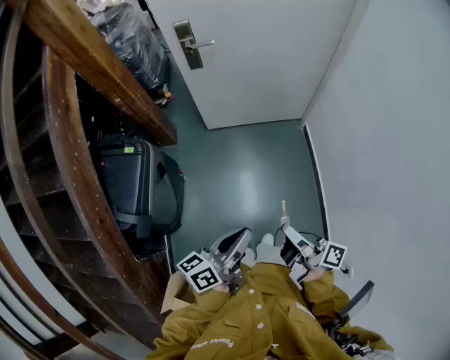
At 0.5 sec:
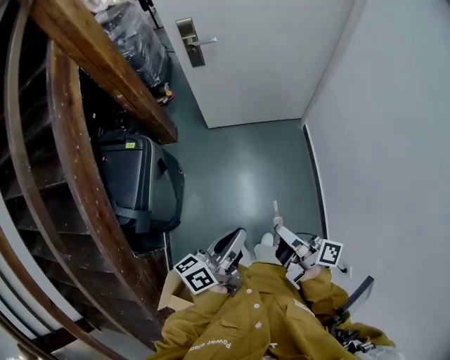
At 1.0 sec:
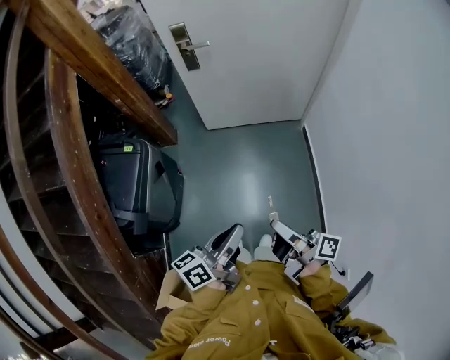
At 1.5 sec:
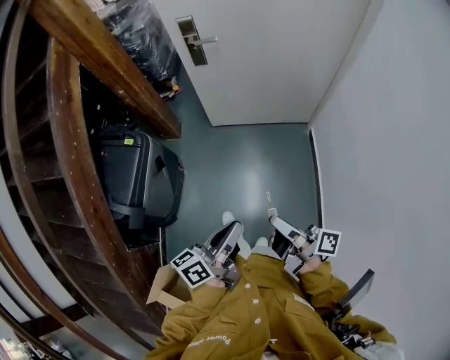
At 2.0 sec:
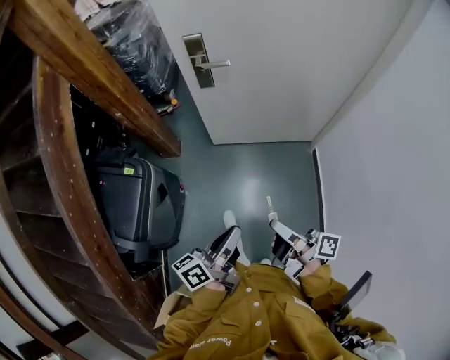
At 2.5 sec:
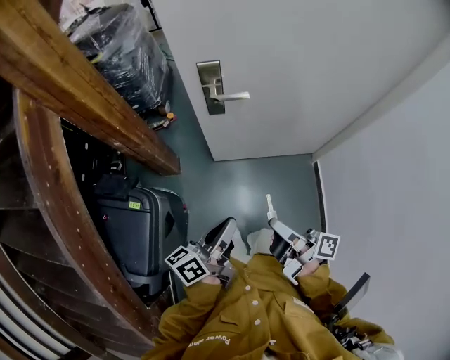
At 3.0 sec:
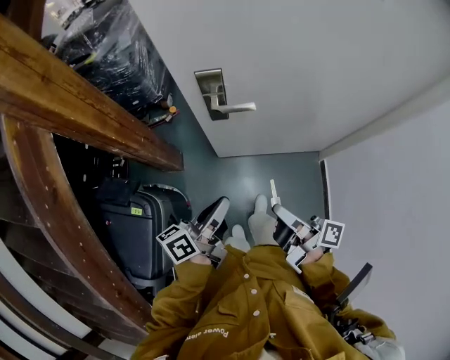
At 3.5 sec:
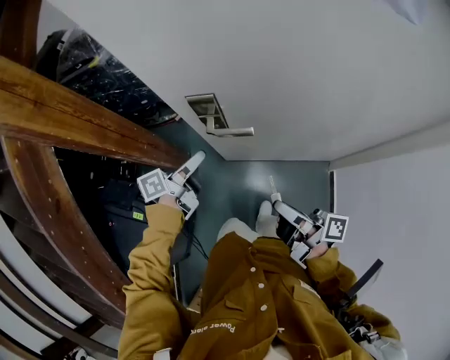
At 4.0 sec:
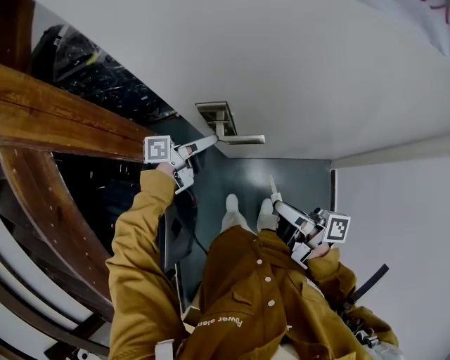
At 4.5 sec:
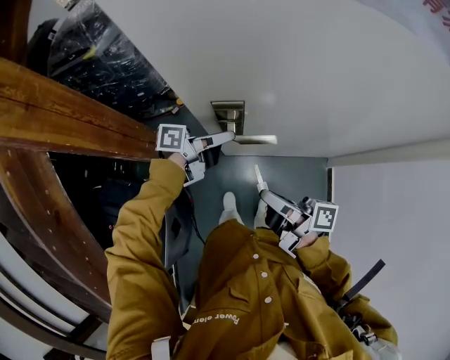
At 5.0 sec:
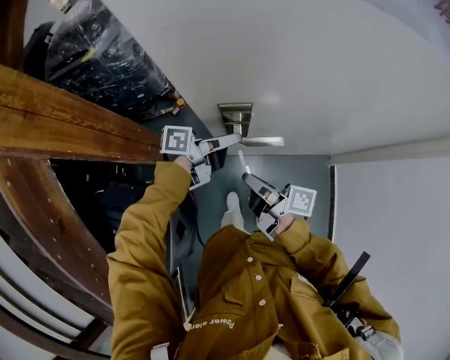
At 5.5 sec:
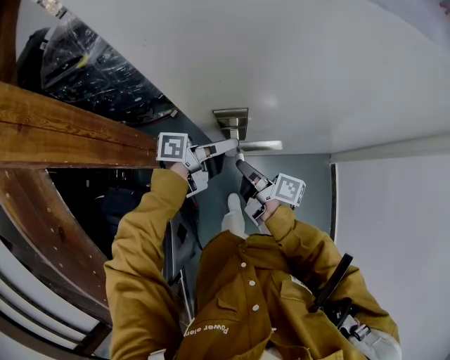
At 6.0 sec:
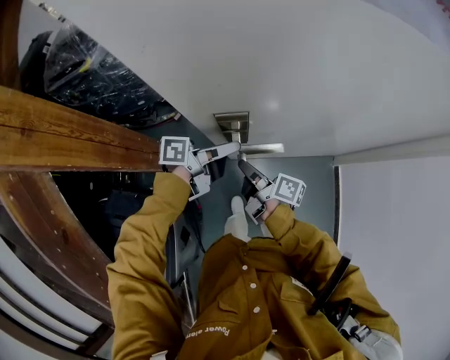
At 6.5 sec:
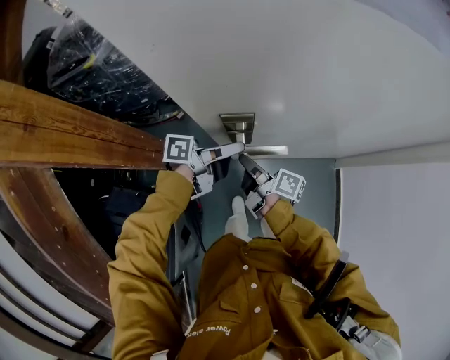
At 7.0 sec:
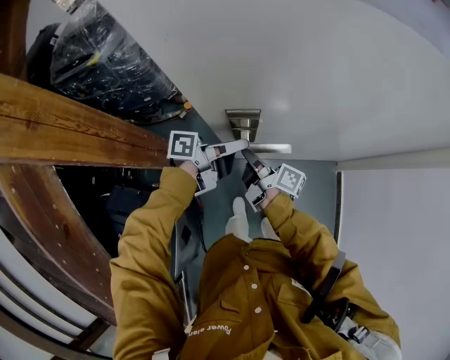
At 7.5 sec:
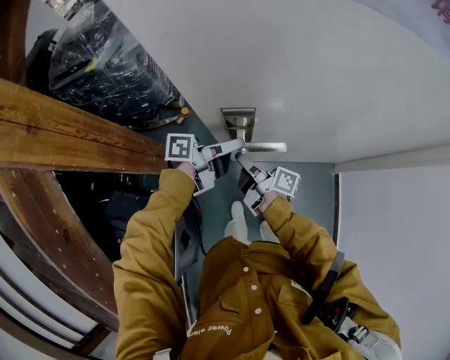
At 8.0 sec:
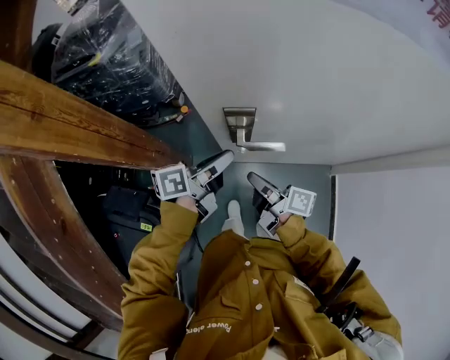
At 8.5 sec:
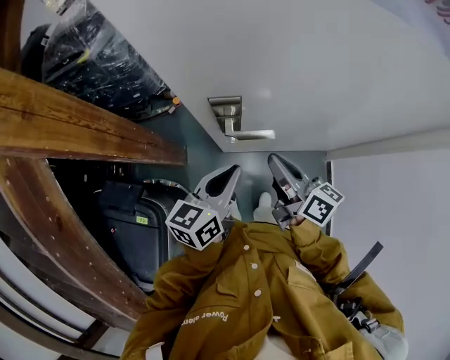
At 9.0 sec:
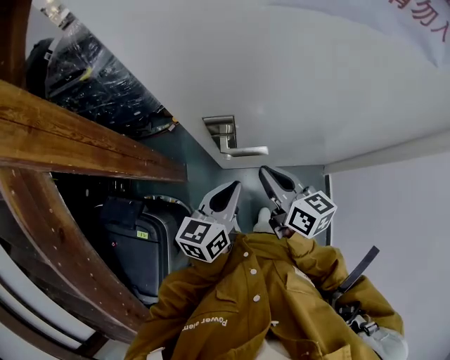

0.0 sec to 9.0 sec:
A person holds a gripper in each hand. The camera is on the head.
0.0 sec to 2.0 sec: The left gripper moves about 20 cm.
2.0 sec to 4.5 sec: The left gripper moves about 60 cm, swivels about 40 degrees, and opens its fingers.
7.0 sec to 9.0 sec: The left gripper changes place by approximately 10 cm, swivels some 60 degrees, and closes.

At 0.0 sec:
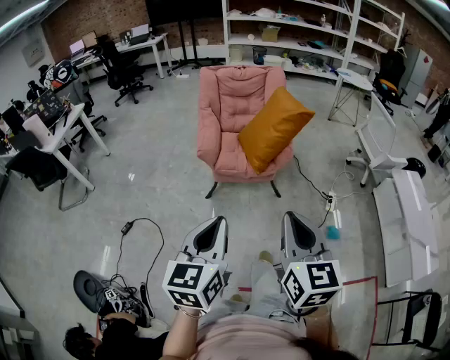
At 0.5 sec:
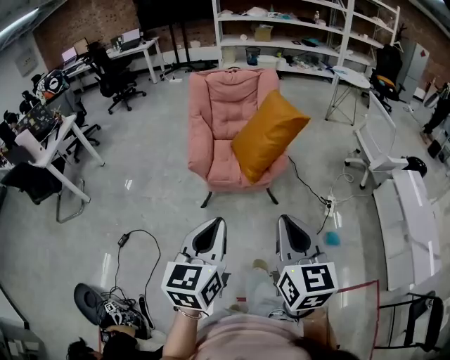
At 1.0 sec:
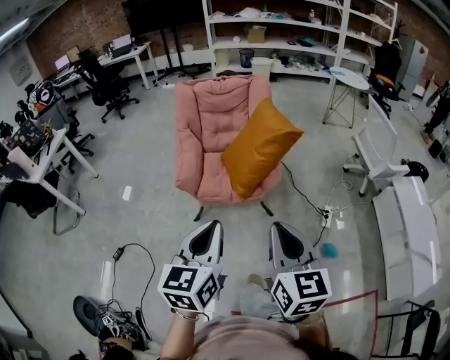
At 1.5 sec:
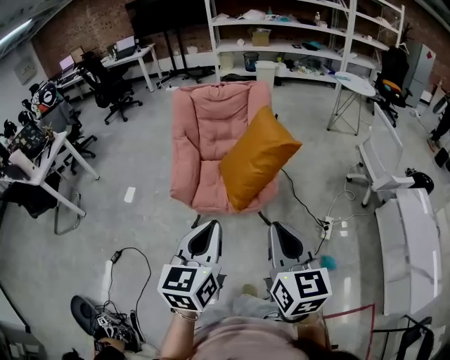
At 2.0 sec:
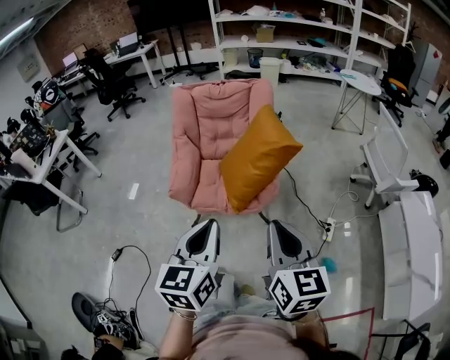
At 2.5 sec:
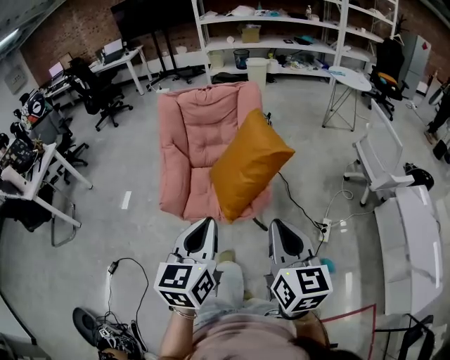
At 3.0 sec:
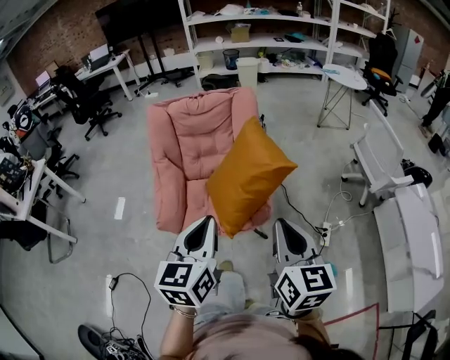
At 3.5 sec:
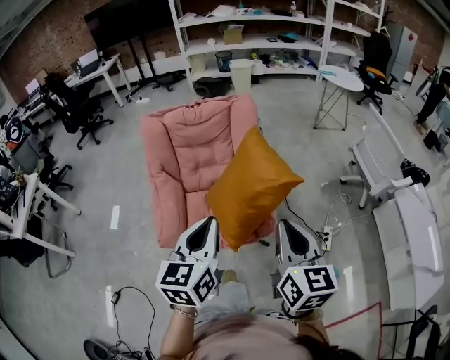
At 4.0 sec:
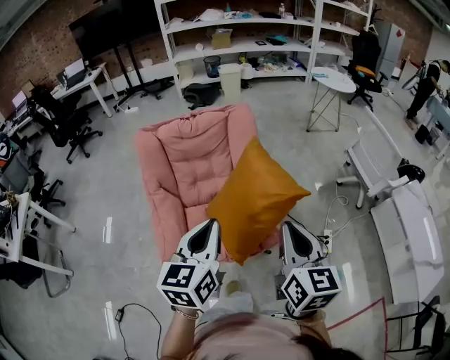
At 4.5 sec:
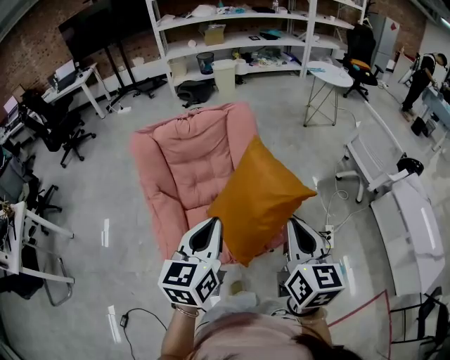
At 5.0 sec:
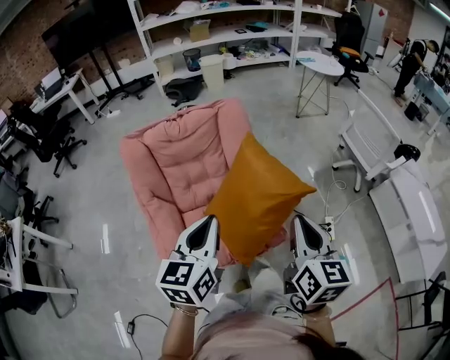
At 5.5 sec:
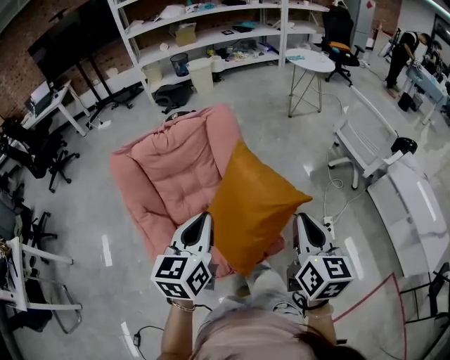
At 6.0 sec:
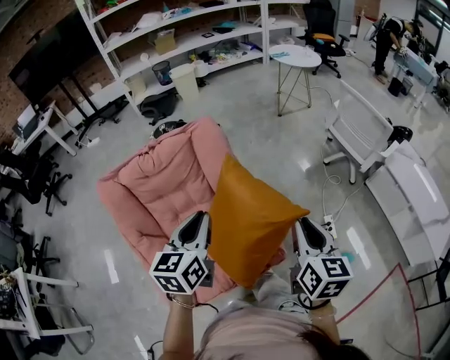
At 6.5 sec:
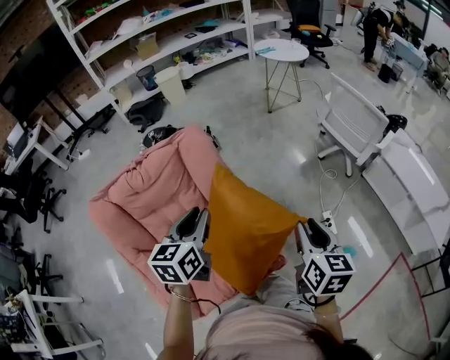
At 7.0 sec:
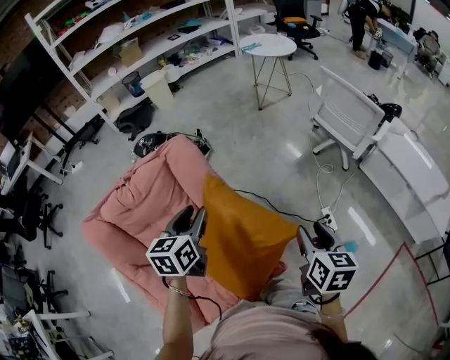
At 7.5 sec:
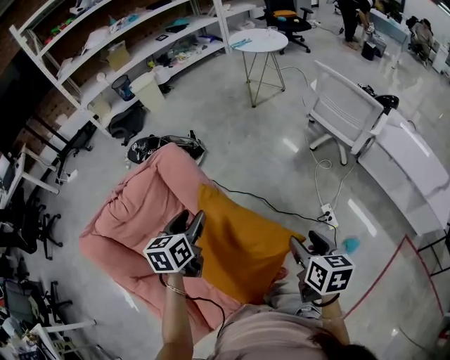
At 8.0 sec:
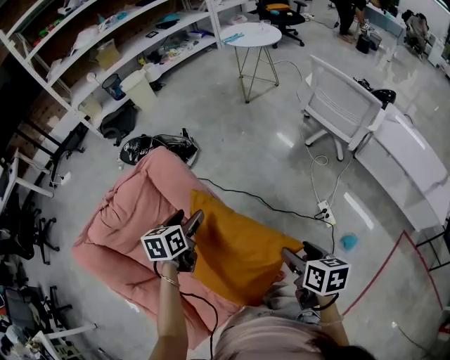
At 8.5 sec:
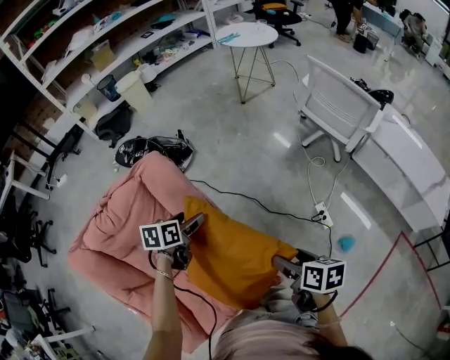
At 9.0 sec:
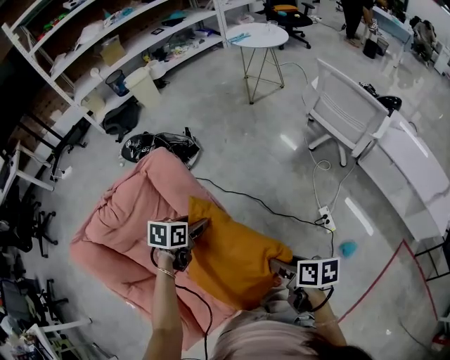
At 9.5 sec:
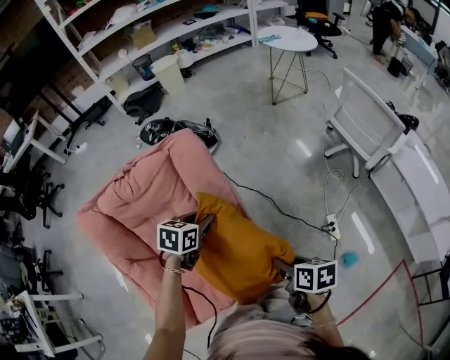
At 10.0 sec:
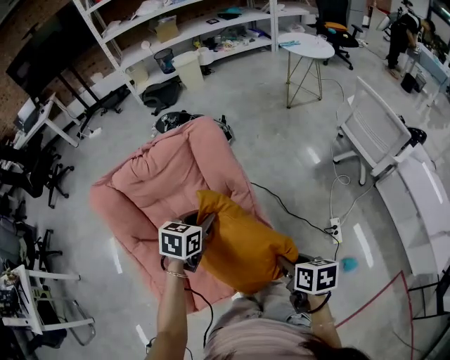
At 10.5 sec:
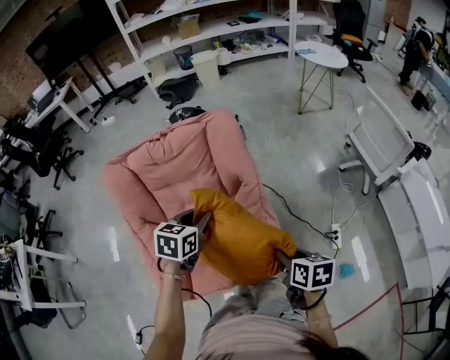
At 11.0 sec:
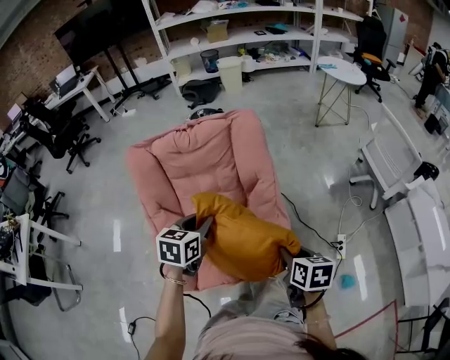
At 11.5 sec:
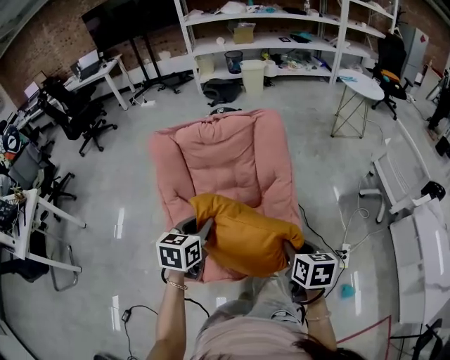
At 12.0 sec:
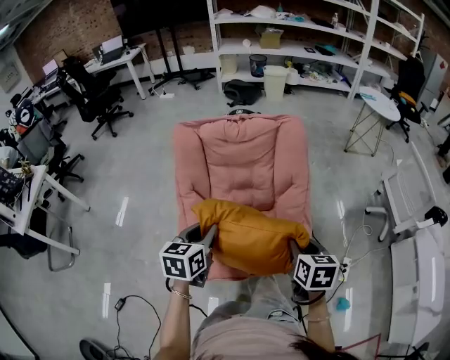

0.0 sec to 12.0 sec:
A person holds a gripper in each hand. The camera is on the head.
0.0 sec to 2.0 sec: The two grippers go roughly 30 cm forward and to the right.
2.0 sec to 4.0 sec: Both grippers move forward, approximately 30 cm.
4.0 sec to 6.0 sec: The left gripper is displaced forward by about 20 cm, while the right gripper travels forward and downward by roughly 15 cm, and swivels approximately 20 degrees.
6.0 sec to 8.0 sec: The right gripper travels downward and forward by approximately 20 cm, rotates about 30 degrees, and opens up, while the left gripper heads forward and downward, covering approximately 30 cm, rotates roughly 30 degrees, and opens up.
8.0 sec to 10.0 sec: The left gripper goes approximately 10 cm backward, and closes up; the right gripper is displaced to the left and backward by about 10 cm, turns by approximately 20 degrees, and closes up.
10.0 sec to 12.0 sec: The right gripper heads to the left and upward, covering about 15 cm, and rotates some 30 degrees. The left gripper is displaced backward and to the left by roughly 30 cm, and changes its angle by some 30 degrees.

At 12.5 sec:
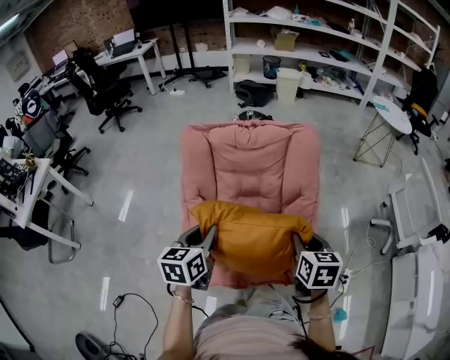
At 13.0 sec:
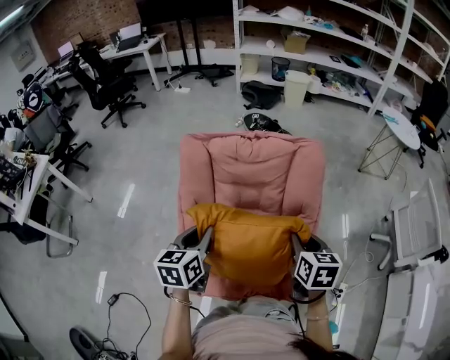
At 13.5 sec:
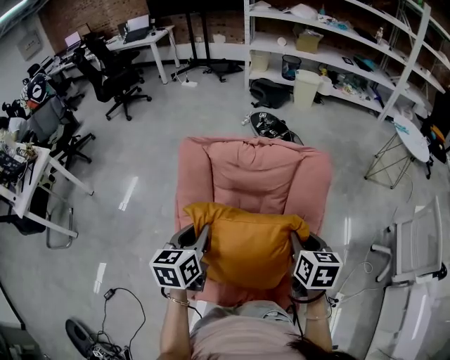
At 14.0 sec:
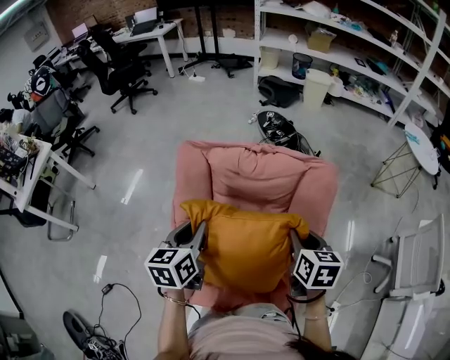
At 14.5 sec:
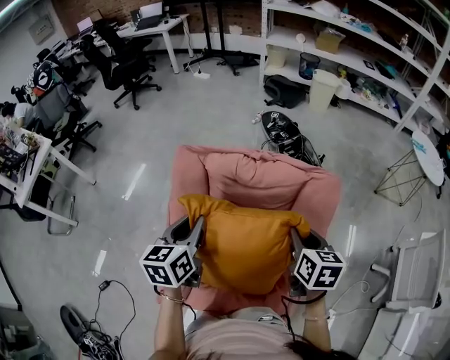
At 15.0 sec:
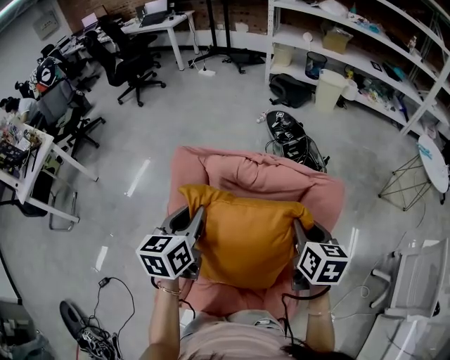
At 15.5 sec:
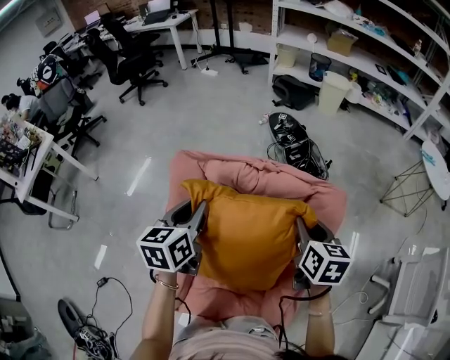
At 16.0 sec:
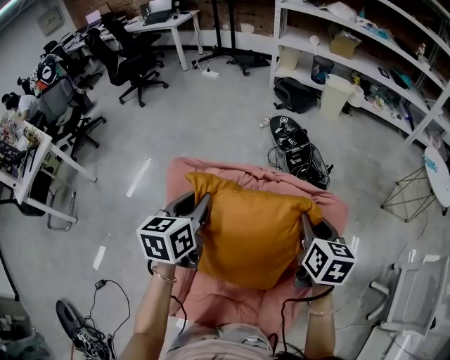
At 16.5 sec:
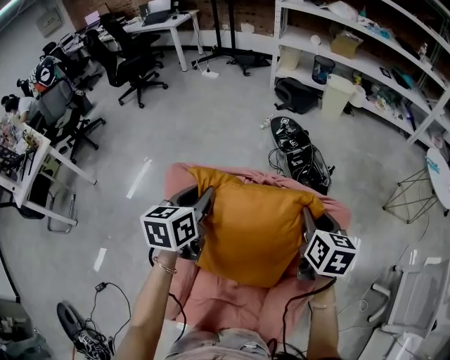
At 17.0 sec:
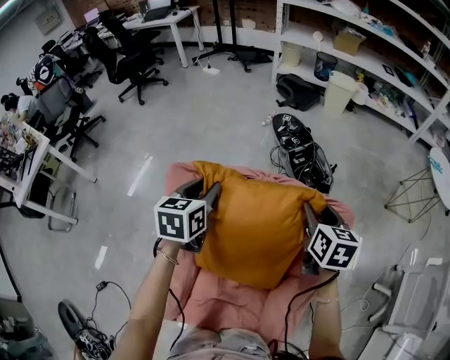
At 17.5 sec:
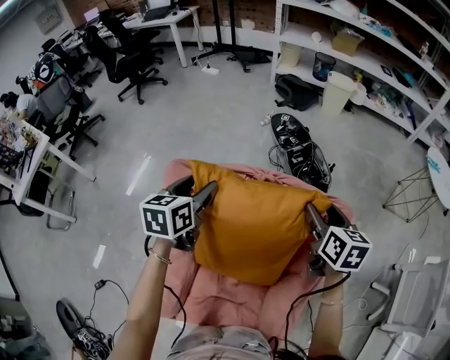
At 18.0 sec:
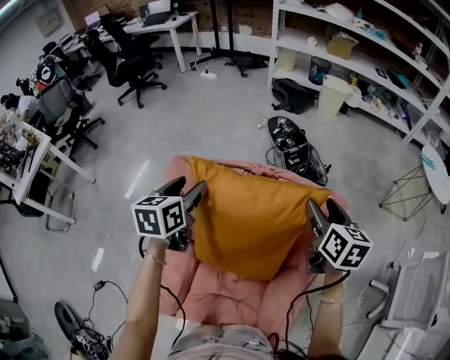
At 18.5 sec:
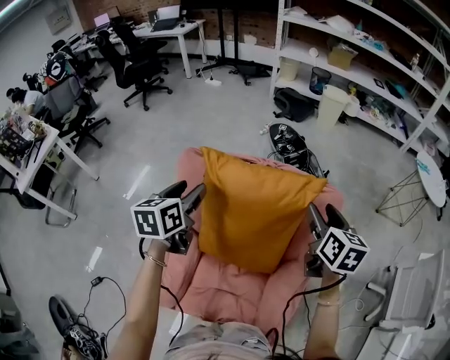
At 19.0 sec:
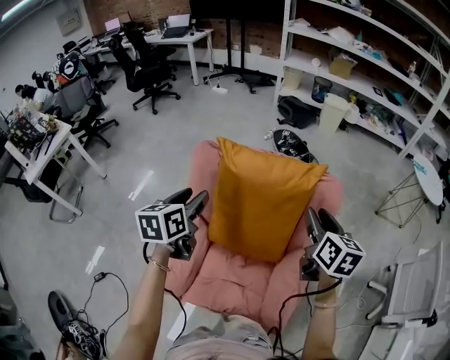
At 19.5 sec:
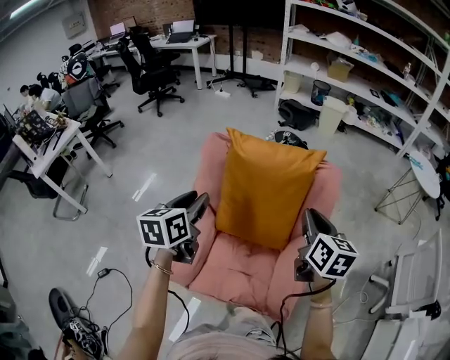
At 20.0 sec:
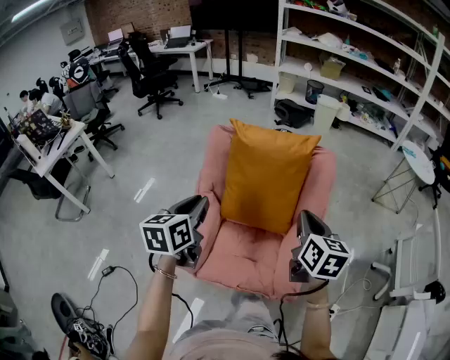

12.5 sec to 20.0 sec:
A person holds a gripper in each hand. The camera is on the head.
12.5 sec to 14.5 sec: The grippers both shift forward by approximately 25 cm.
14.5 sec to 16.5 sec: Both grippers move forward, some 15 cm.
16.5 sec to 18.0 sec: The right gripper opens up, while the left gripper opens up.
18.0 sec to 20.0 sec: The grippers both shift backward by approximately 35 cm. The right gripper closes up; the left gripper closes.
